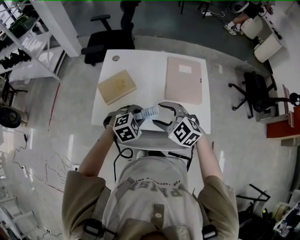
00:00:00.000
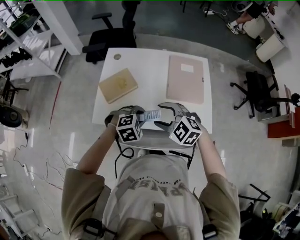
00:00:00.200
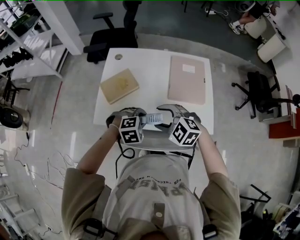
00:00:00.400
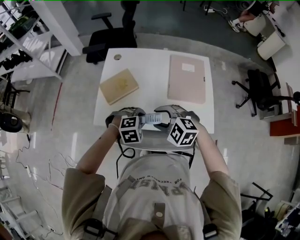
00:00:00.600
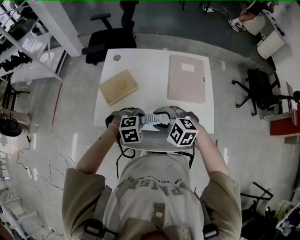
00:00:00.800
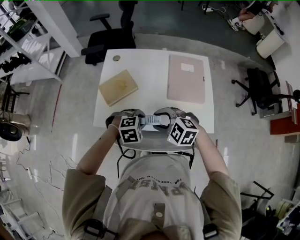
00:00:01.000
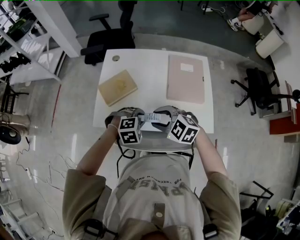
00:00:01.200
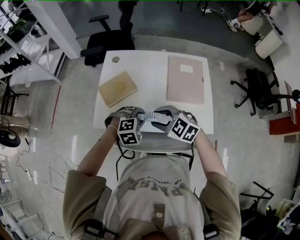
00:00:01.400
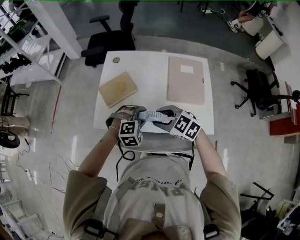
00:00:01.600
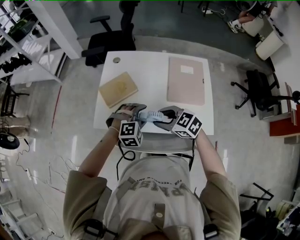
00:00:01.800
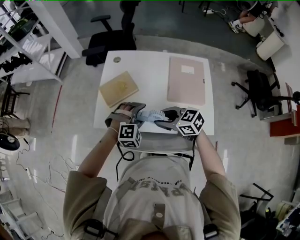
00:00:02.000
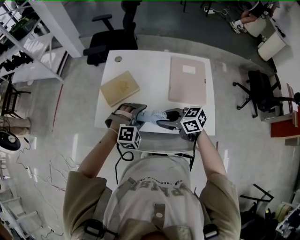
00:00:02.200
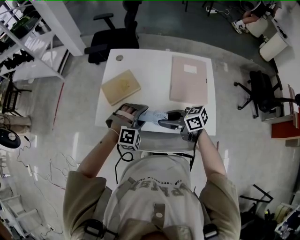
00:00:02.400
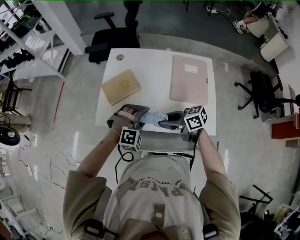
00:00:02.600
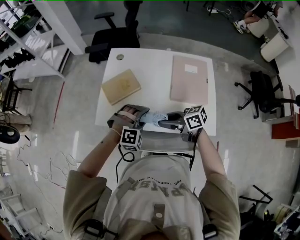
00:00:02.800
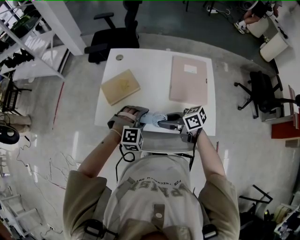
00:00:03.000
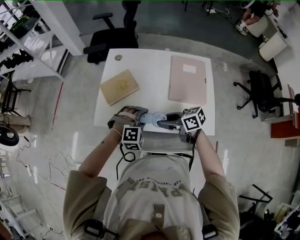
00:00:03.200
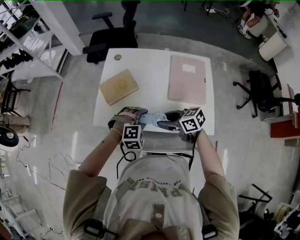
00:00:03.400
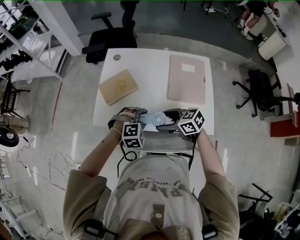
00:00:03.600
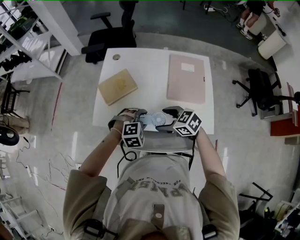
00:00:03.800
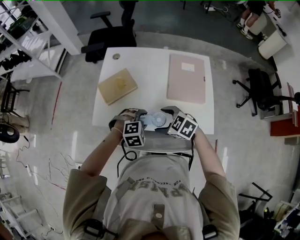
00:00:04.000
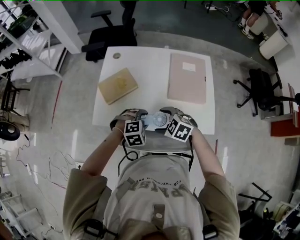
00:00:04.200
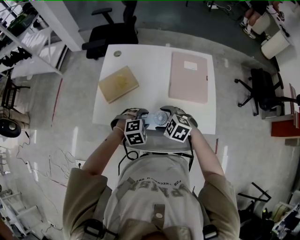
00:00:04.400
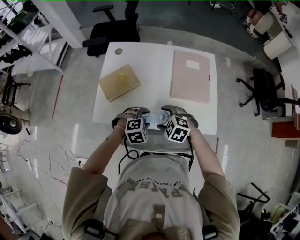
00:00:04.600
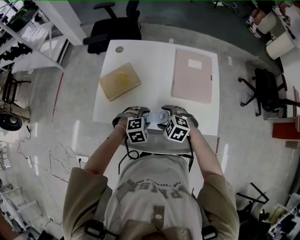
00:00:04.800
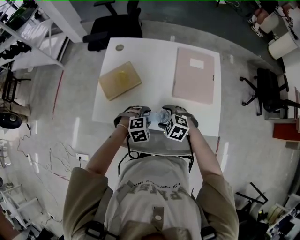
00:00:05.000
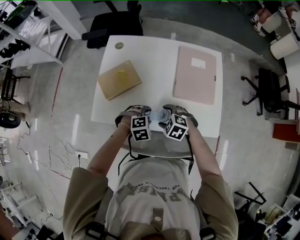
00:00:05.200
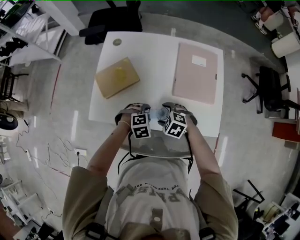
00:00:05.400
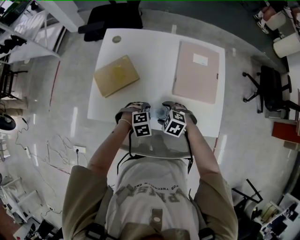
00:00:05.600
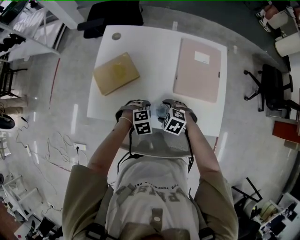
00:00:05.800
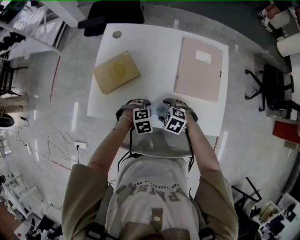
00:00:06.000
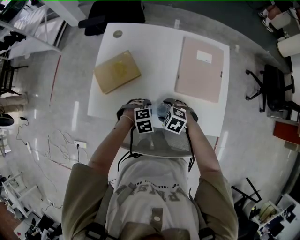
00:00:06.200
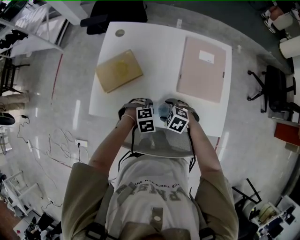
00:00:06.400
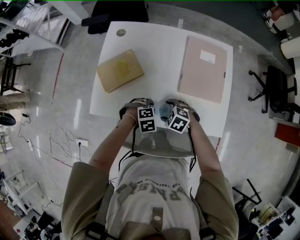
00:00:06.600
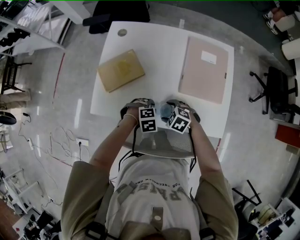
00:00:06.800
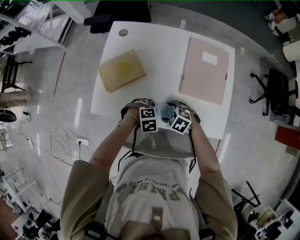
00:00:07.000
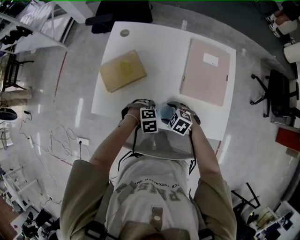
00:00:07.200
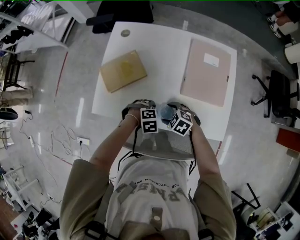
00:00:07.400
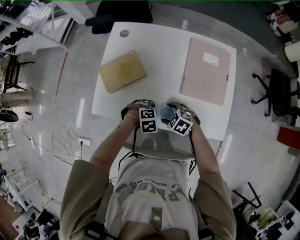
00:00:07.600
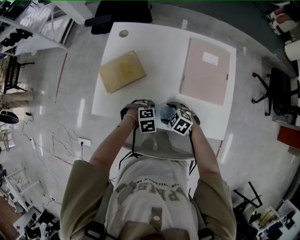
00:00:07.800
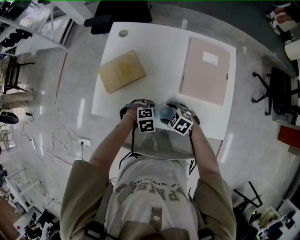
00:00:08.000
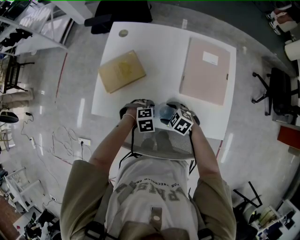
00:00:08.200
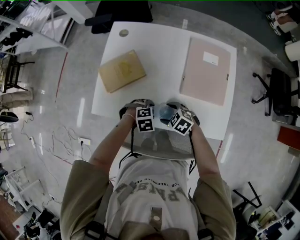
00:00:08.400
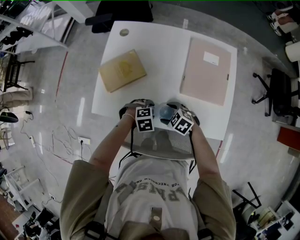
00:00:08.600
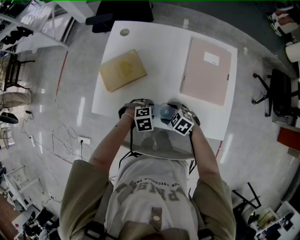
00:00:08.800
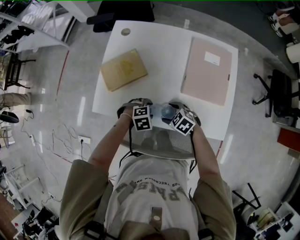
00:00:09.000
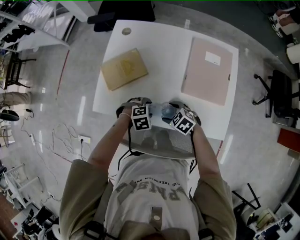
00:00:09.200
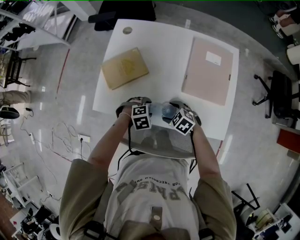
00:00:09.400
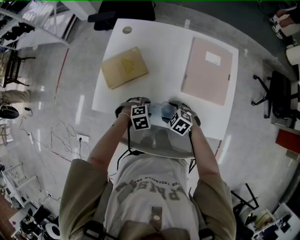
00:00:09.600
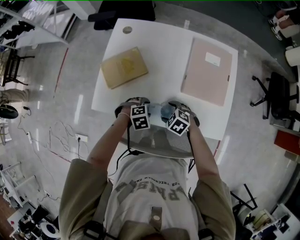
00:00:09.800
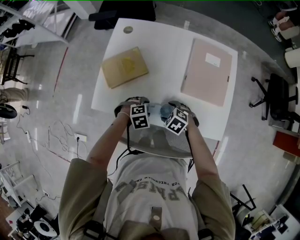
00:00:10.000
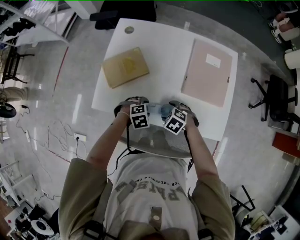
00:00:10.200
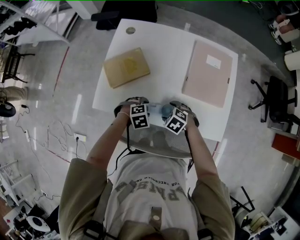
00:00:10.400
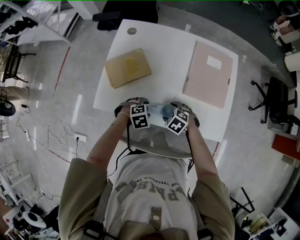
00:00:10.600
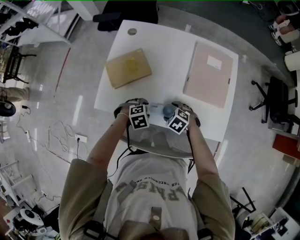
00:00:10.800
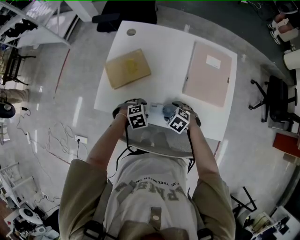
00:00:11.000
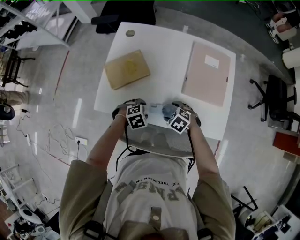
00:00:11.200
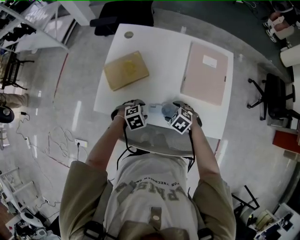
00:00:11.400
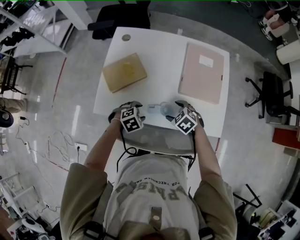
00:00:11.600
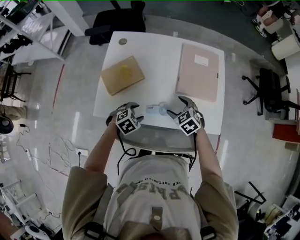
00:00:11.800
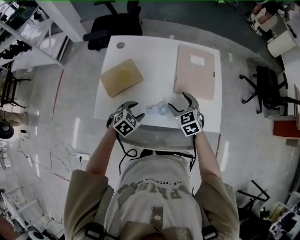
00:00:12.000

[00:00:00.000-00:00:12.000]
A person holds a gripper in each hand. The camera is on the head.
00:00:00.000 to 00:00:01.600: The grippers stay close to where they were, moving slightly.
00:00:01.600 to 00:00:03.000: The right gripper twists about 40 degrees clockwise, seen from behind.
00:00:03.000 to 00:00:04.400: The two grippers go roughly 5 cm downward. The left gripper swivels roughly 20 degrees. The right gripper points its fingers some 40 degrees further downward, and opens its fingers.
00:00:04.400 to 00:00:06.000: The two grippers go some 10 cm downward.
00:00:06.000 to 00:00:10.400: The grippers make only small movements.
00:00:10.400 to 00:00:12.000: The right gripper goes some 15 cm upward, and points its fingers about 30 degrees further upward; the left gripper is displaced upward by roughly 10 cm, and swivels approximately 30 degrees.

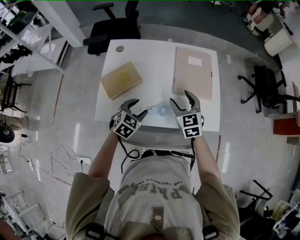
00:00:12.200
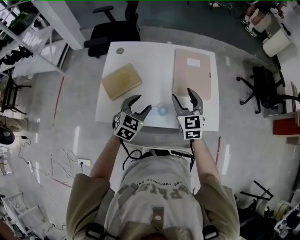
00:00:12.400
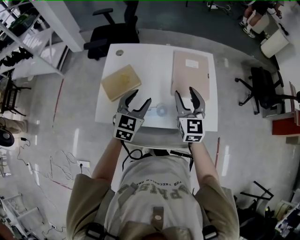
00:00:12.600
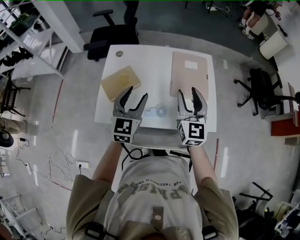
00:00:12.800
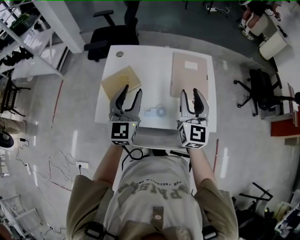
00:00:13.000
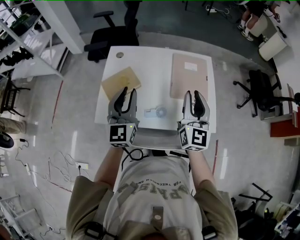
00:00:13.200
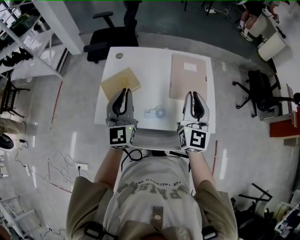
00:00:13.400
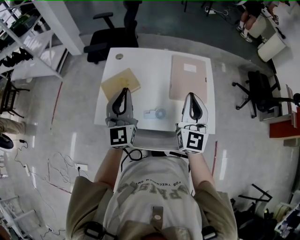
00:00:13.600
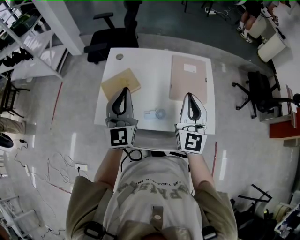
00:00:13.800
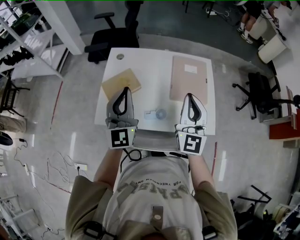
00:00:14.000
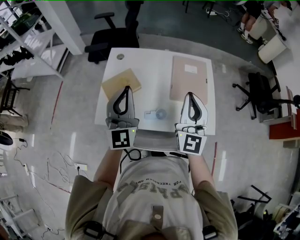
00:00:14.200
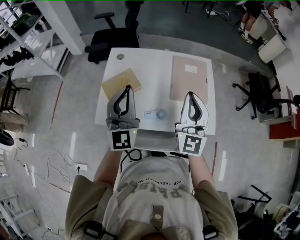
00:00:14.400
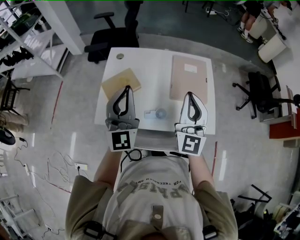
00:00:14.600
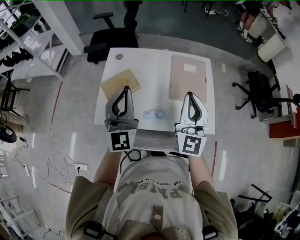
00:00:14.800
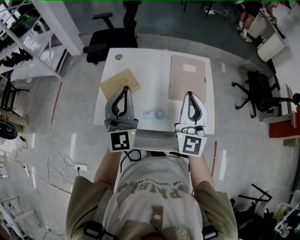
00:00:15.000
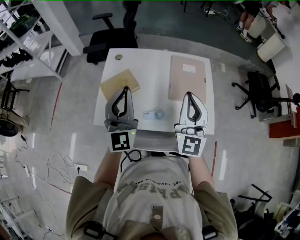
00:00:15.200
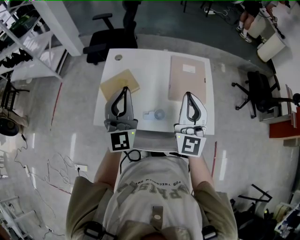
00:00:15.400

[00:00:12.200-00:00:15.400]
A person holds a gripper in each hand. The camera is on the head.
00:00:12.200 to 00:00:13.800: Both grippers travel together upward, about 20 cm. The right gripper points its fingers approximately 40 degrees further upward, and closes, while the left gripper tilts its fingers about 50 degrees upward, and closes its fingers.
00:00:13.800 to 00:00:15.400: The grippers stay close to where they were, moving slightly.

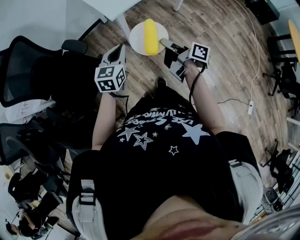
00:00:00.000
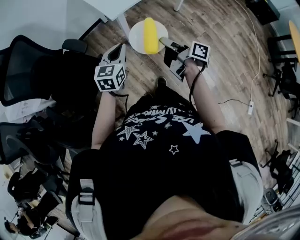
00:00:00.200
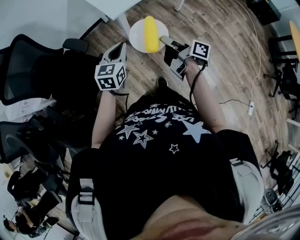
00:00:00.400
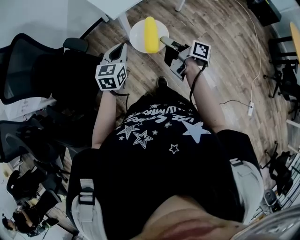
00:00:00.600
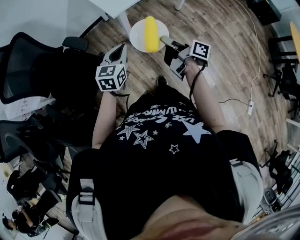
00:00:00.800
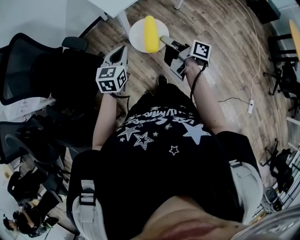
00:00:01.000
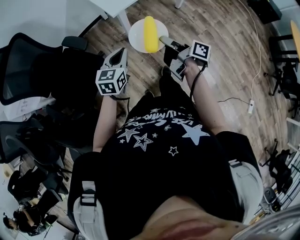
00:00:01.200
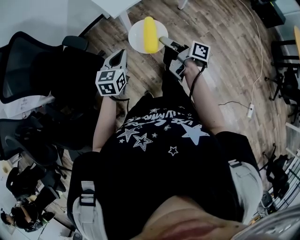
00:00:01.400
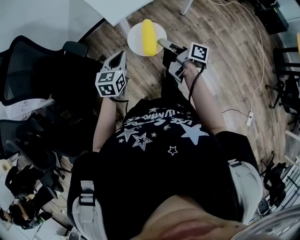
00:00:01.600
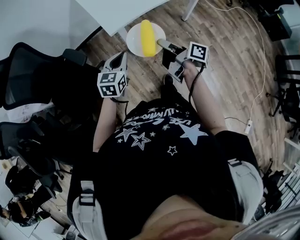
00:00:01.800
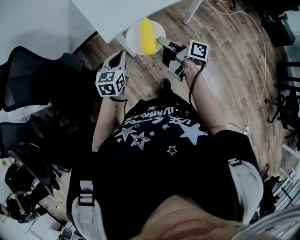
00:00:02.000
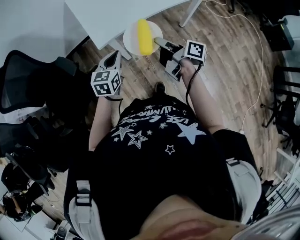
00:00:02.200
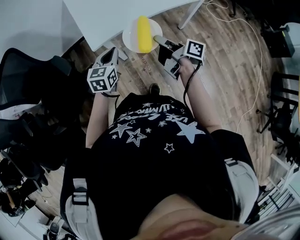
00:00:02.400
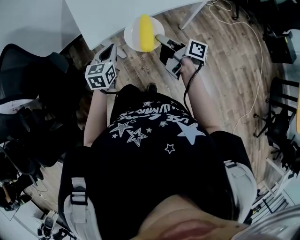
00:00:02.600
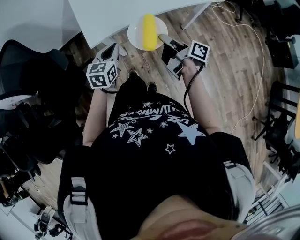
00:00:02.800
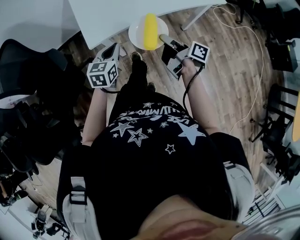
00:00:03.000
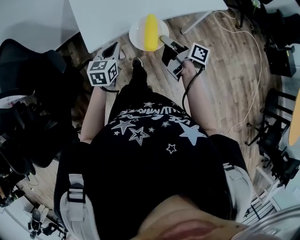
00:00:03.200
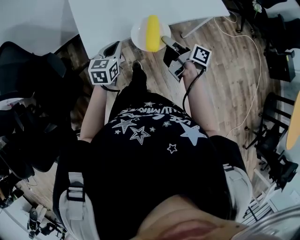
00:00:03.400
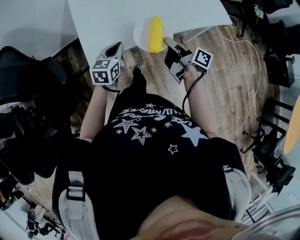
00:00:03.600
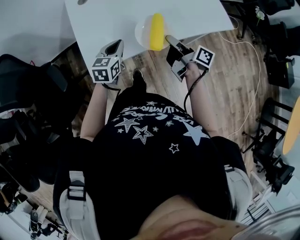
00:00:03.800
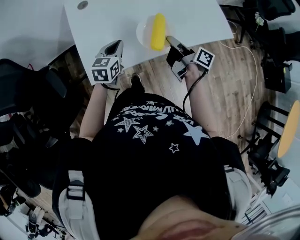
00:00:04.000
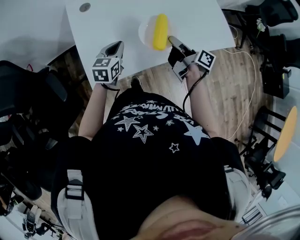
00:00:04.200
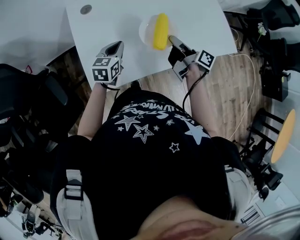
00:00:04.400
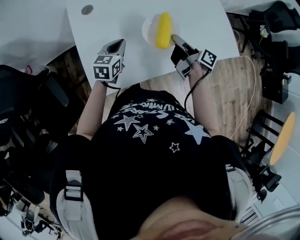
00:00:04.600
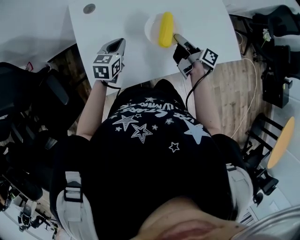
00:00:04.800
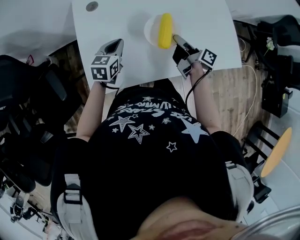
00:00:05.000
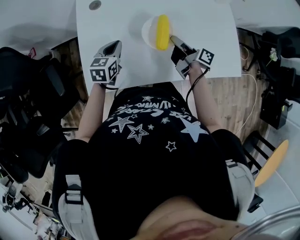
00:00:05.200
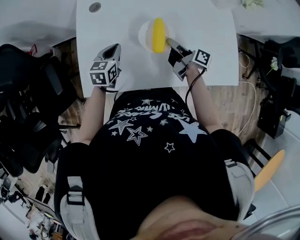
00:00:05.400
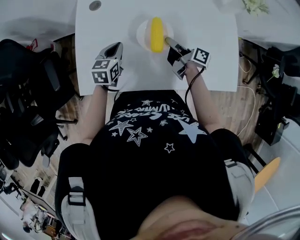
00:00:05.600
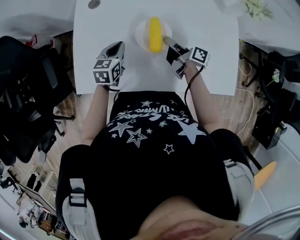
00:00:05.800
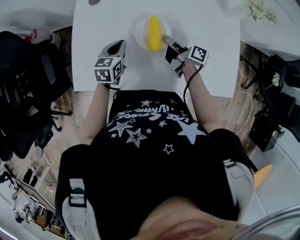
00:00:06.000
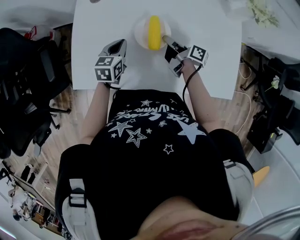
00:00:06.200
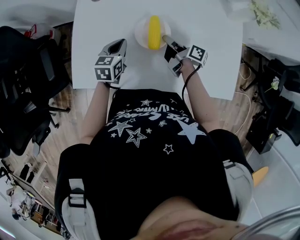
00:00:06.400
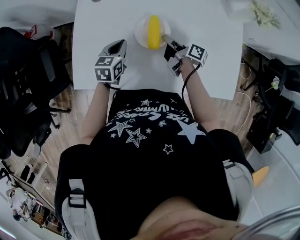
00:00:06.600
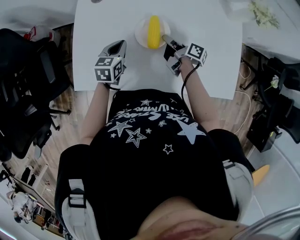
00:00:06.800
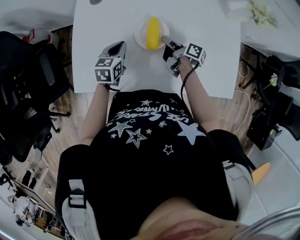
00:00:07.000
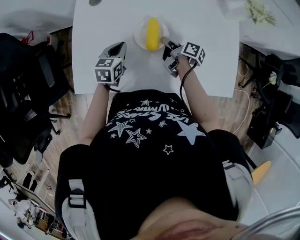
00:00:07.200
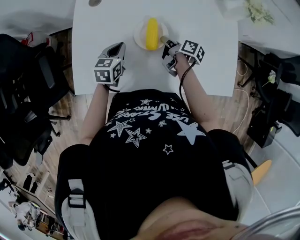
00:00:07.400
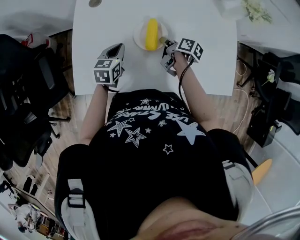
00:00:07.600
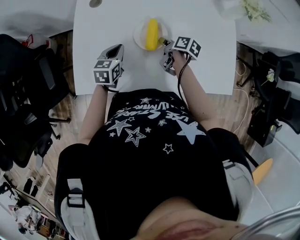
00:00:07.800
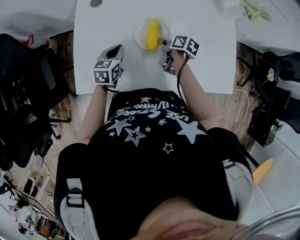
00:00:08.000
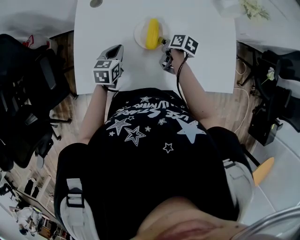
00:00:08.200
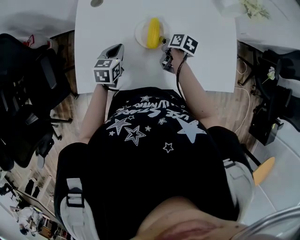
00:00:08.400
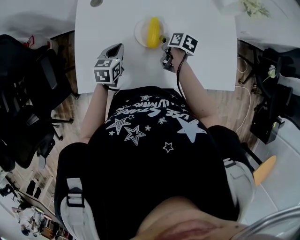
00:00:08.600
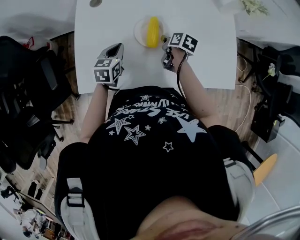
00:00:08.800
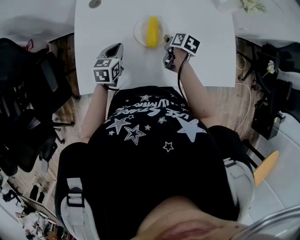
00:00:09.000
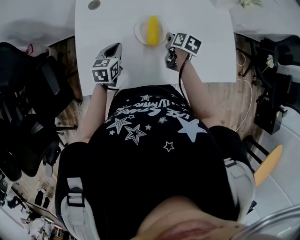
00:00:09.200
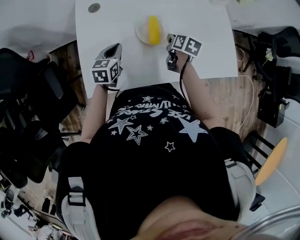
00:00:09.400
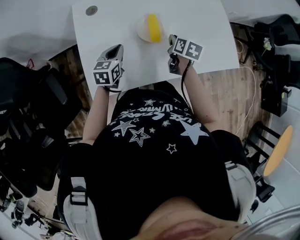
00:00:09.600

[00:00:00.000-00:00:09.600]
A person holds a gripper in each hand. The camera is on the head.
00:00:00.000 to 00:00:01.600: The left gripper shifts by roughly 5 cm.
00:00:01.600 to 00:00:03.200: The left gripper shifts by about 30 cm.
00:00:03.200 to 00:00:04.800: The left gripper changes place by some 30 cm.
00:00:04.800 to 00:00:06.400: The left gripper changes place by about 5 cm, and turns by approximately 20 degrees.
00:00:08.000 to 00:00:09.600: The left gripper shifts by about 5 cm.
